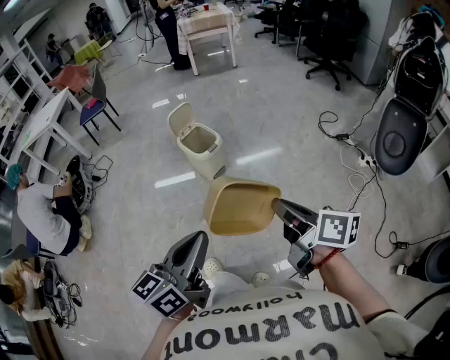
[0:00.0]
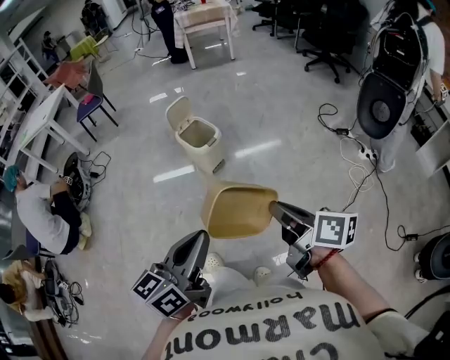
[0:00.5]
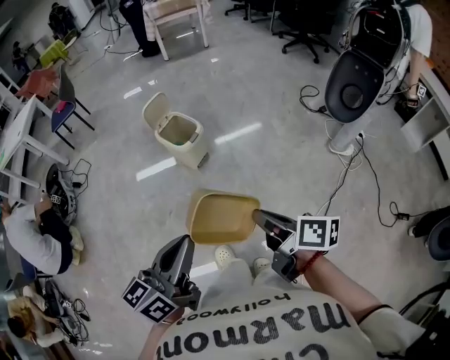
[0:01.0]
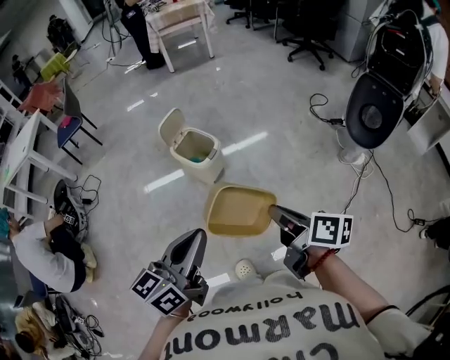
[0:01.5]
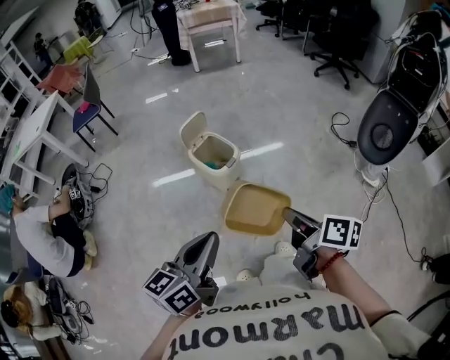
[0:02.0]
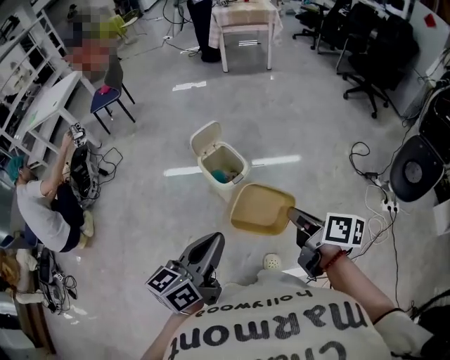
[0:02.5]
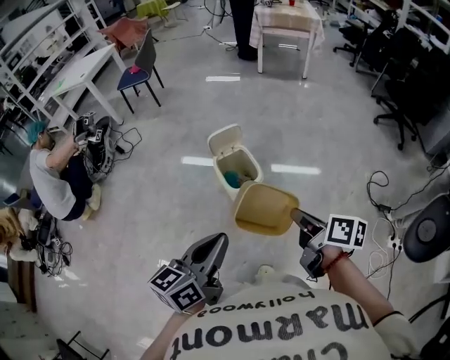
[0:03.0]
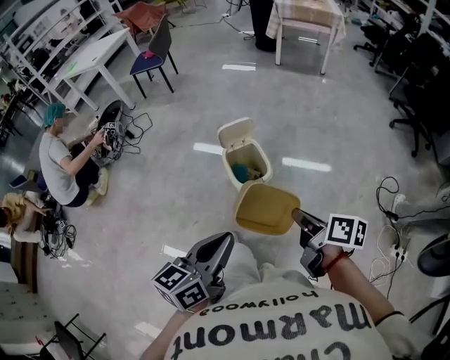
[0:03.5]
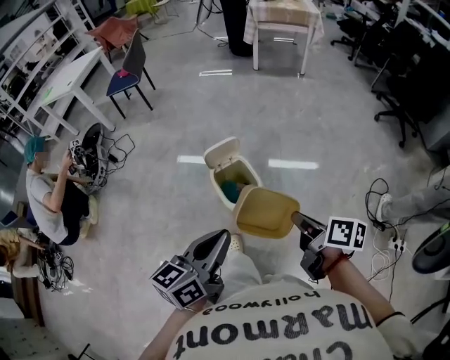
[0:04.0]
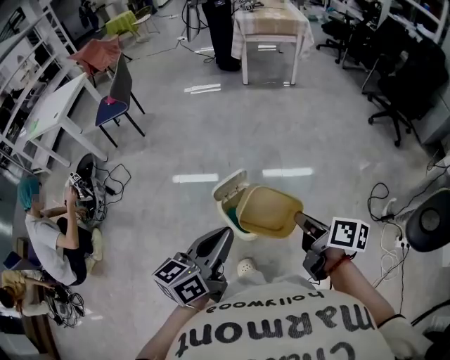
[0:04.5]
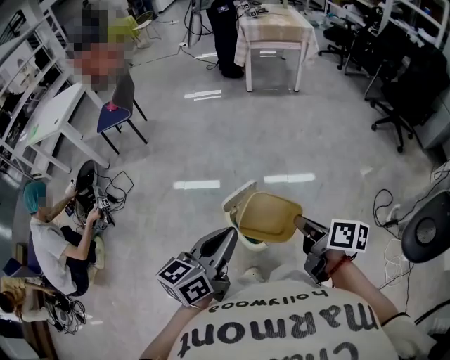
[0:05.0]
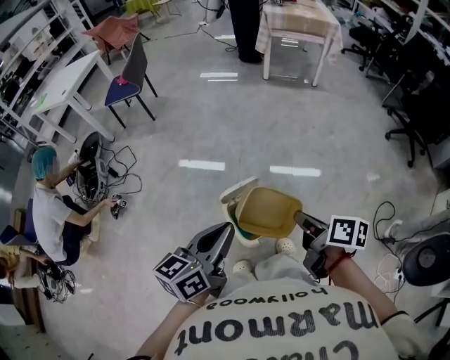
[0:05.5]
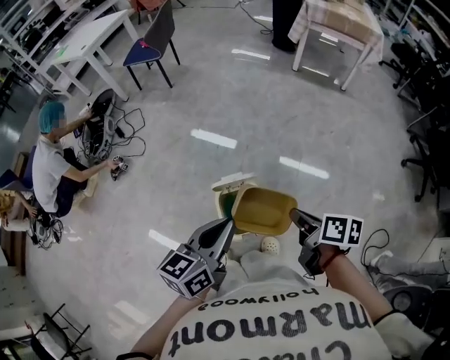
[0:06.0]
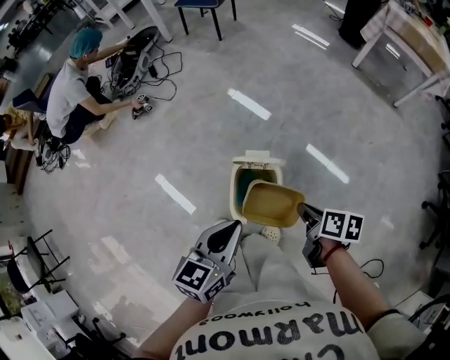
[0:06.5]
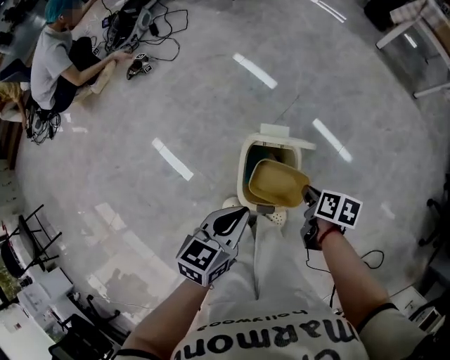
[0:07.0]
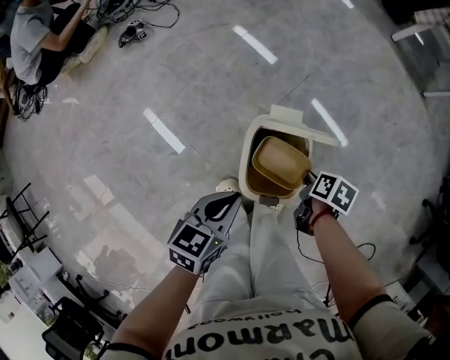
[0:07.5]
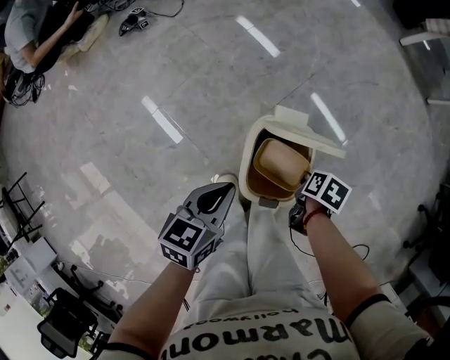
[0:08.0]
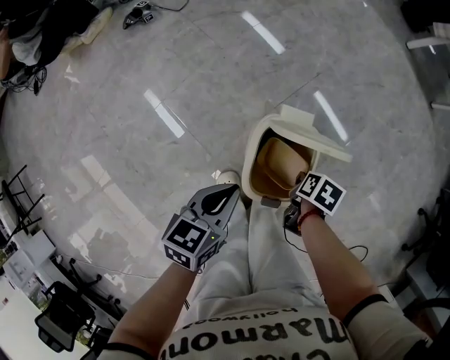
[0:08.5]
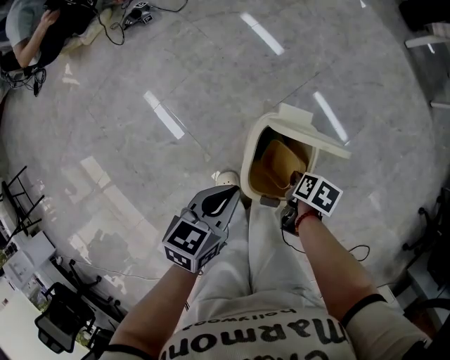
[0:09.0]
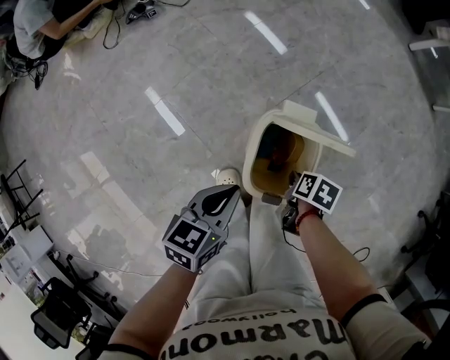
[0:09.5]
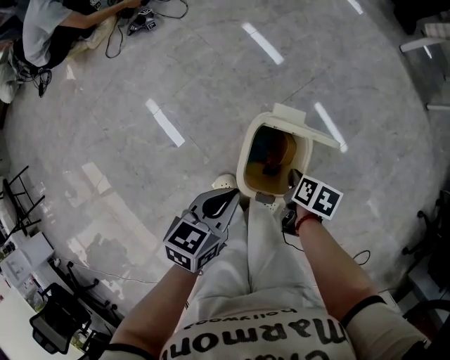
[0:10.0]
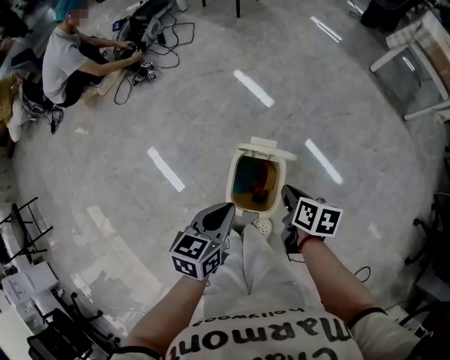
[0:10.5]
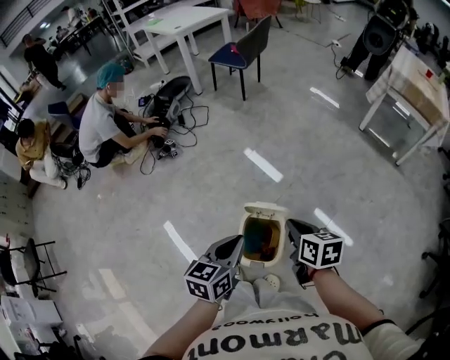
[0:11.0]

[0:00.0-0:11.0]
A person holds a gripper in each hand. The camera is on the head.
0:00.0 to 0:02.0: The left gripper heads forward and to the left, covering roughly 20 cm; the right gripper travels forward, to the left and downward by some 20 cm.
0:02.0 to 0:03.5: The right gripper shifts some 20 cm forward, and rotates roughly 30 degrees. Meanwhile the left gripper moves forward and to the right, approximately 15 cm, and swivels approximately 20 degrees.
0:03.5 to 0:05.5: The grippers both shift forward by approximately 30 cm.
0:05.5 to 0:07.5: The grippers both shift downward by some 35 cm. The left gripper turns by approximately 30 degrees. The right gripper tips its fingers downward by roughly 40 degrees.
0:07.5 to 0:09.0: The right gripper moves roughly 5 cm.
0:09.0 to 0:11.0: The right gripper shifts some 35 cm upward, and points its fingers roughly 40 degrees further upward; the left gripper moves upward, some 20 cm.

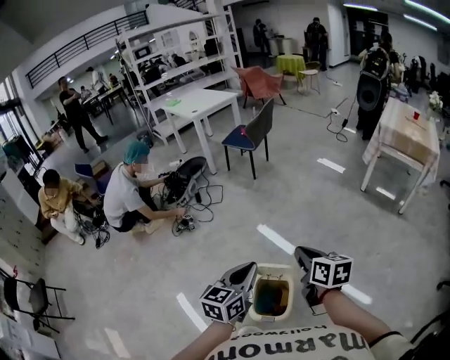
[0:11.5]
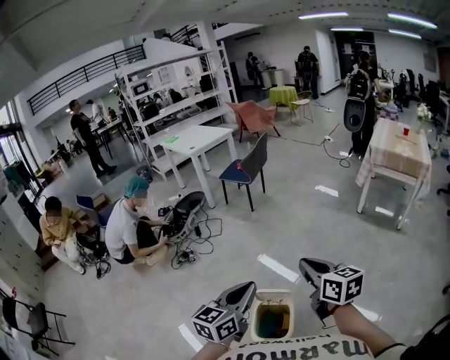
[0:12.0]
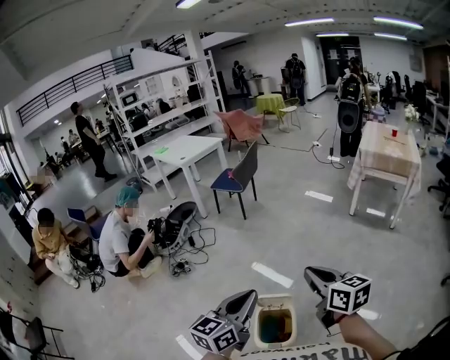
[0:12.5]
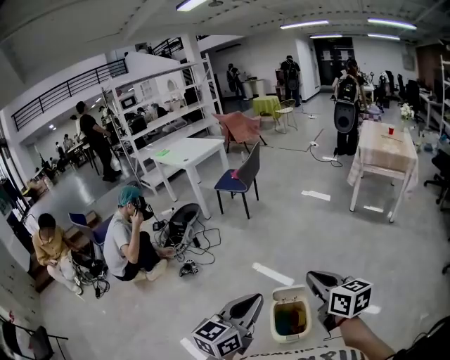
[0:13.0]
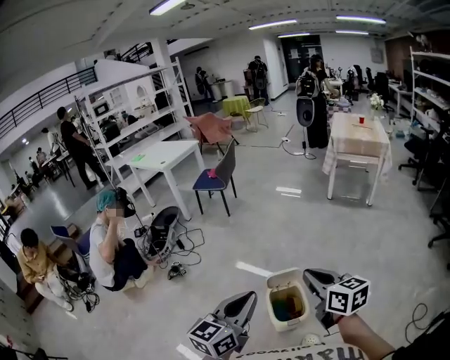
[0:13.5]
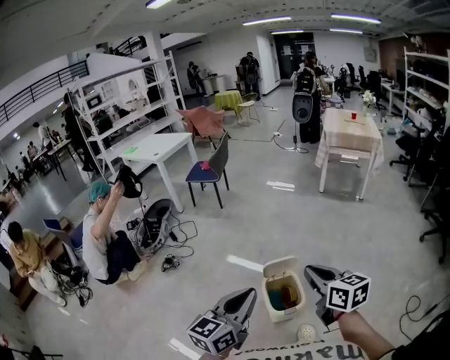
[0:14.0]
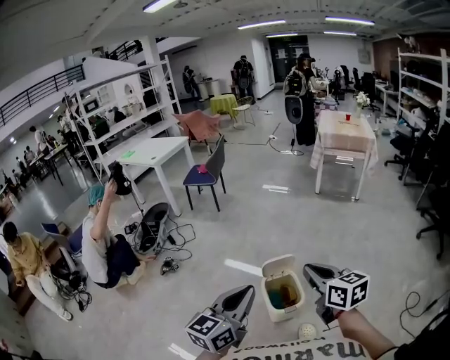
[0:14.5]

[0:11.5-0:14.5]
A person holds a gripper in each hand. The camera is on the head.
0:11.5 to 0:13.0: The left gripper travels upward, backward and to the left by approximately 15 cm, while the right gripper is displaced upward and backward by some 15 cm.
0:13.0 to 0:14.5: The two grippers go approximately 10 cm backward.

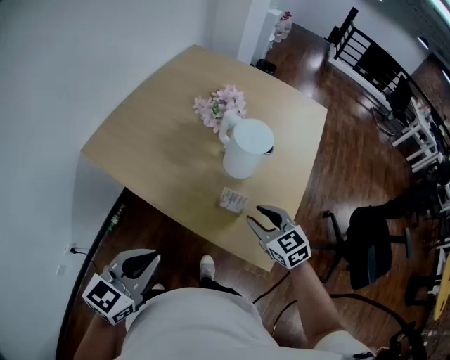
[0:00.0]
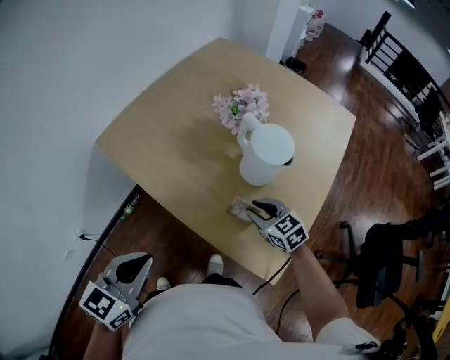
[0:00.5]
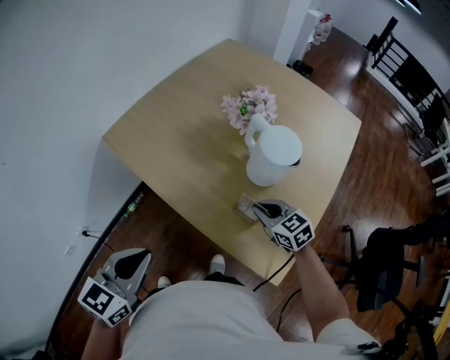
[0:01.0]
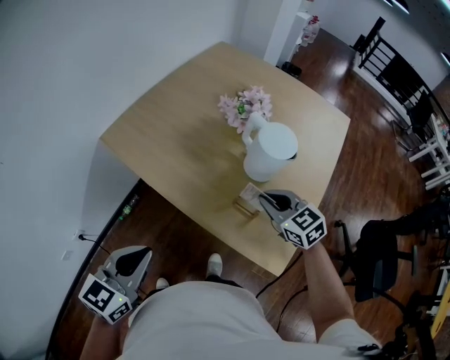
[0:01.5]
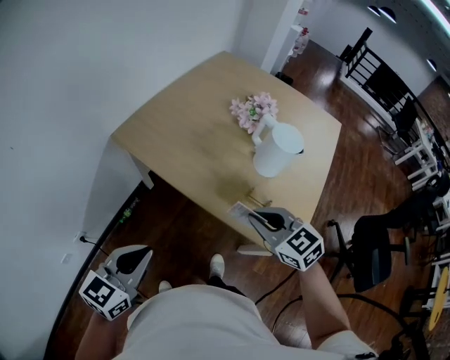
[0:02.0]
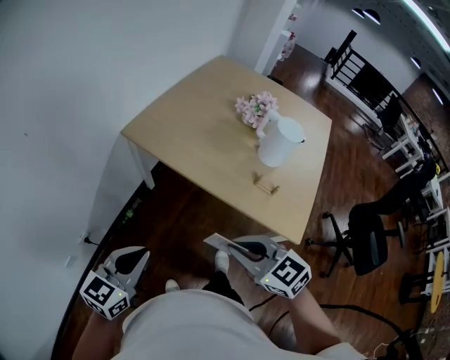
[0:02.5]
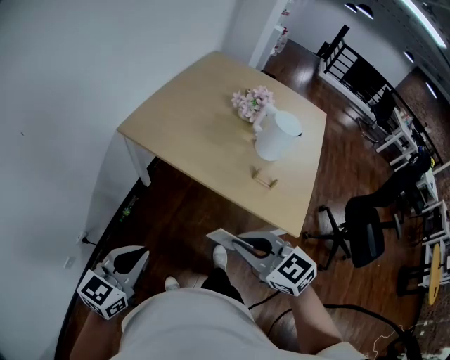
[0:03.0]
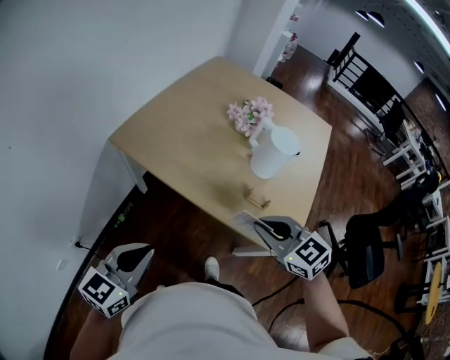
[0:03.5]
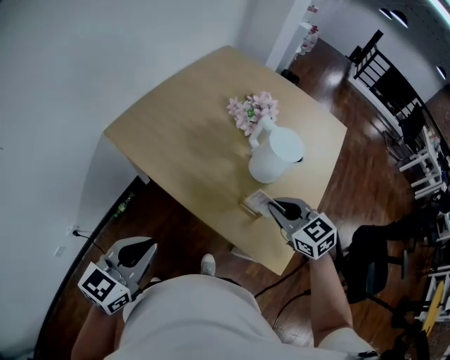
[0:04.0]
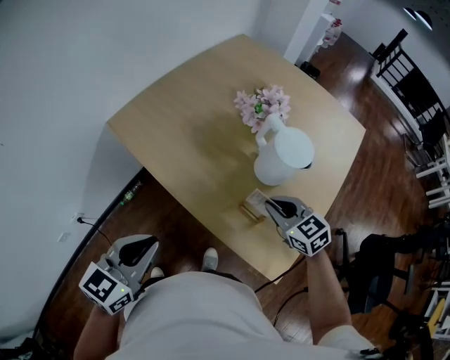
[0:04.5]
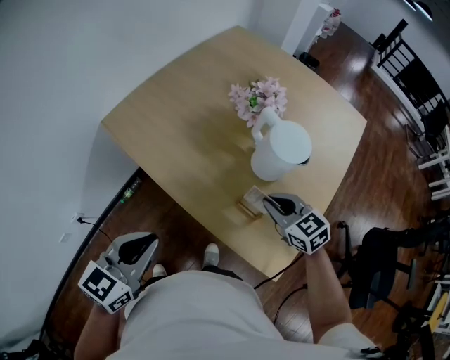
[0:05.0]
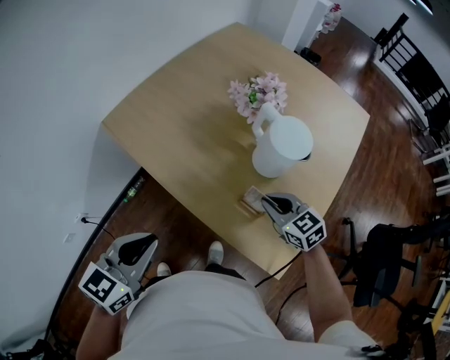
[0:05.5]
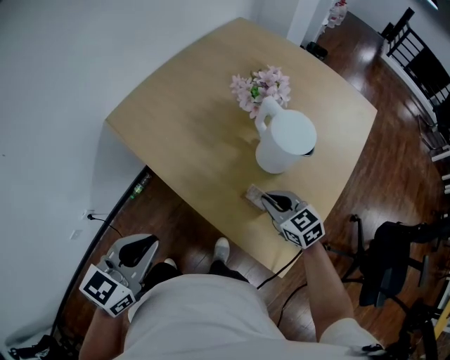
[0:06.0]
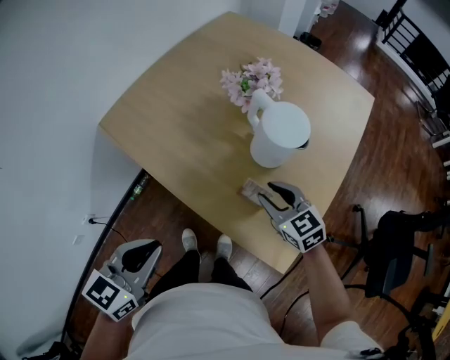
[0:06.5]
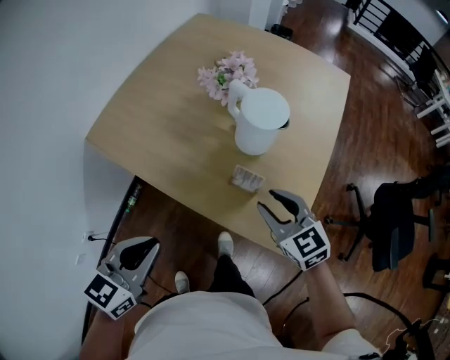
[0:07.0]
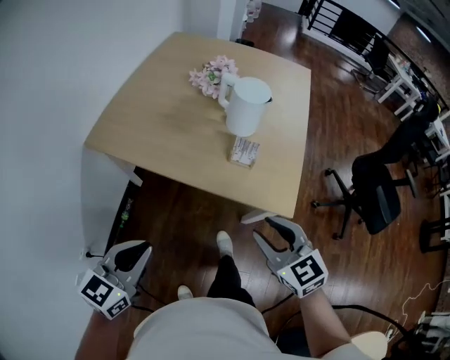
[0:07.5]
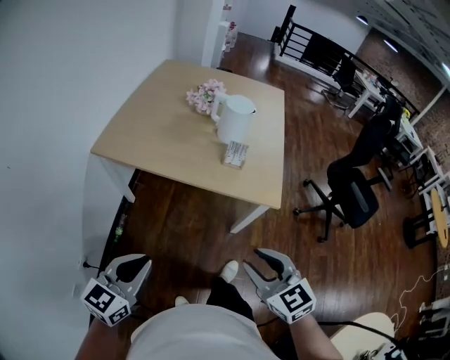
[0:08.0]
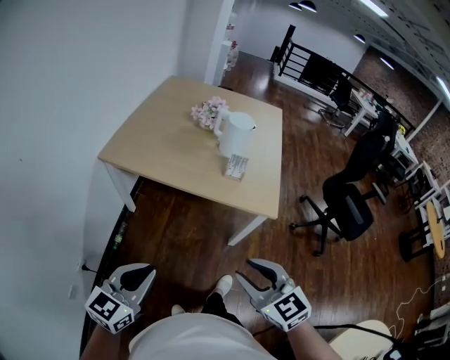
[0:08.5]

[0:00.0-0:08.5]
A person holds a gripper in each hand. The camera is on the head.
0:00.0 to 0:02.0: The left gripper heads to the left, covering about 15 cm. Meanwhile the right gripper heads to the left and upward, covering approximately 15 cm, and closes up.
0:02.0 to 0:04.0: The right gripper is displaced to the right and forward by some 15 cm. Meanwhile the left gripper moves to the right, some 5 cm.
0:04.0 to 0:06.5: The right gripper moves downward, approximately 10 cm, and opens, while the left gripper goes approximately 10 cm to the right.
0:06.5 to 0:08.5: The left gripper ends up roughly 35 cm from where it was, and swivels some 30 degrees; the right gripper changes place by roughly 50 cm, and swivels approximately 20 degrees.

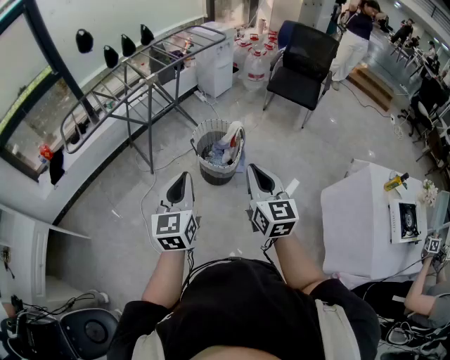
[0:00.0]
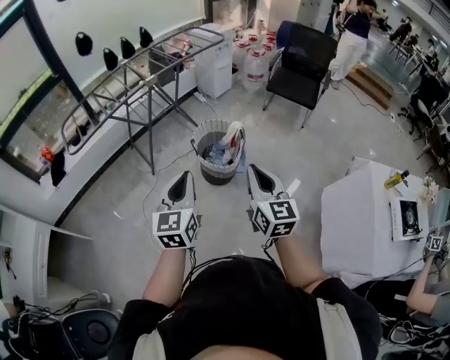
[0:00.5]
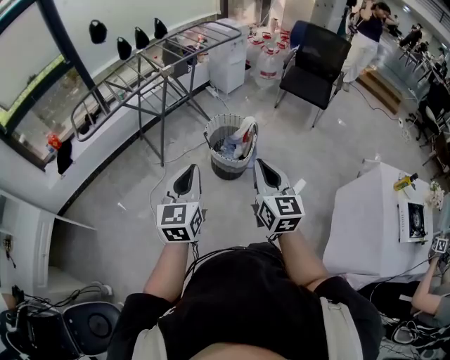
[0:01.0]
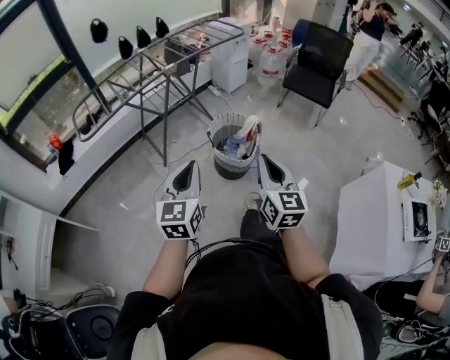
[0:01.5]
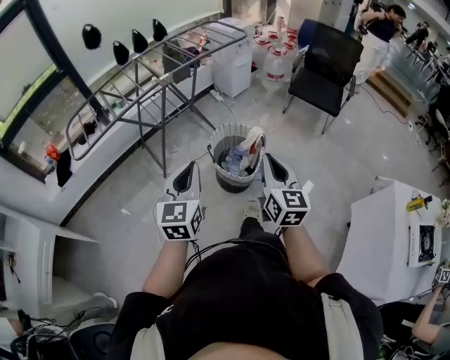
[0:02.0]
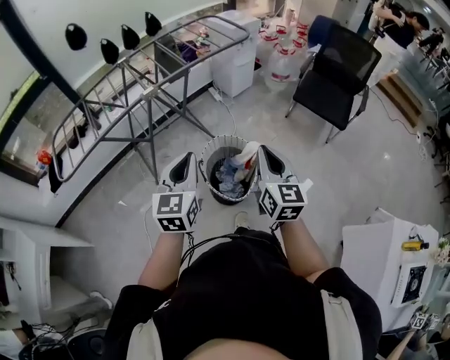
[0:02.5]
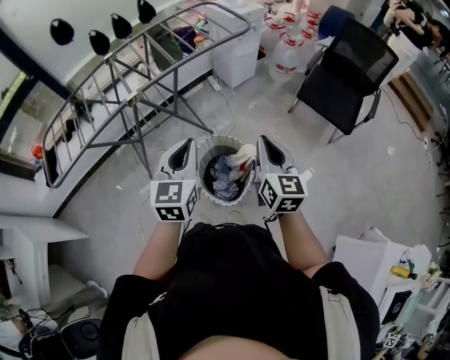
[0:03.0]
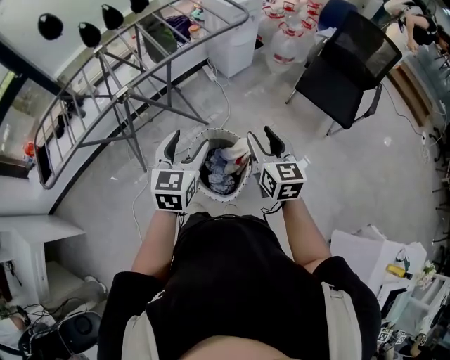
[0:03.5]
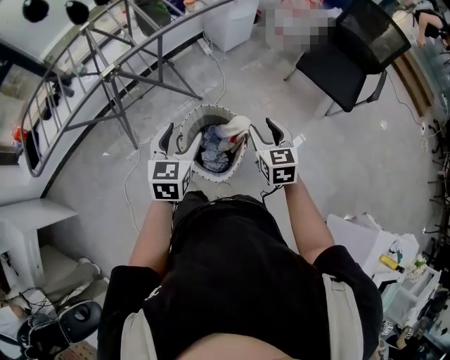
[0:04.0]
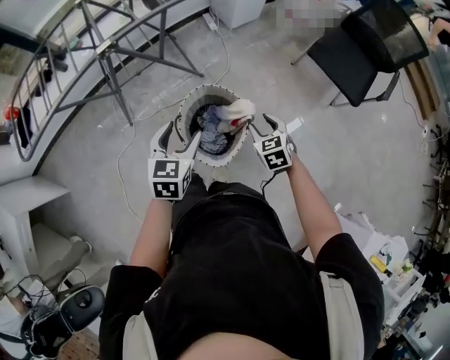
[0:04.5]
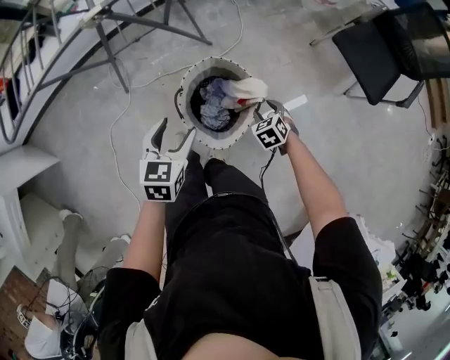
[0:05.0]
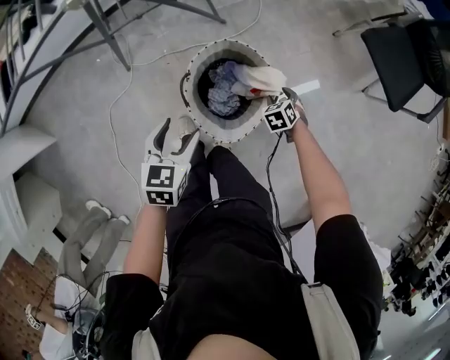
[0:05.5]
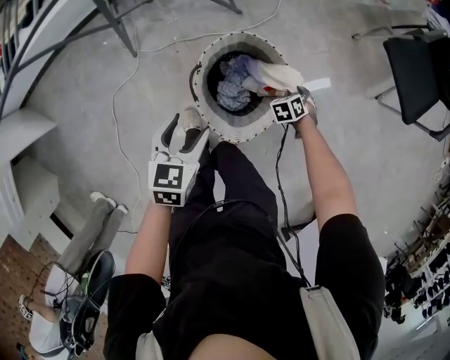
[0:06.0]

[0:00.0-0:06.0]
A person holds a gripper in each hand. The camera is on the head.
0:00.0 to 0:02.0: Both grippers travel together forward, roughly 15 cm.
0:02.0 to 0:04.0: The two grippers travel together, forward, some 40 cm. The right gripper turns by some 30 degrees, and opens up; the left gripper swivels some 20 degrees, and opens.
0:04.0 to 0:06.0: The left gripper travels downward by roughly 25 cm, and turns by approximately 20 degrees. The right gripper travels downward by approximately 50 cm, and tilts its fingers roughly 40 degrees downward.
